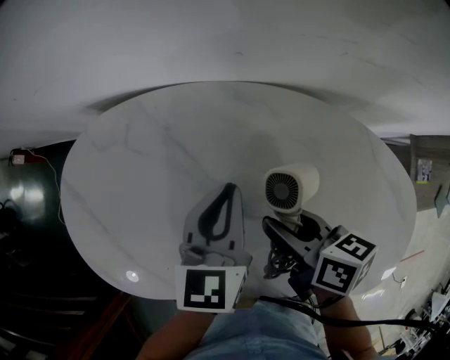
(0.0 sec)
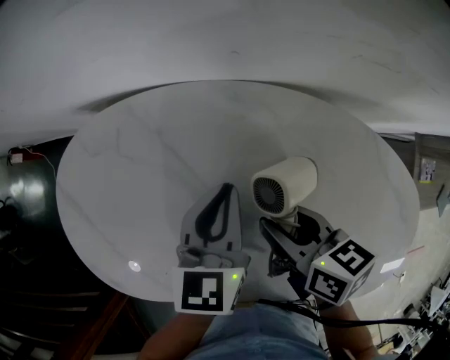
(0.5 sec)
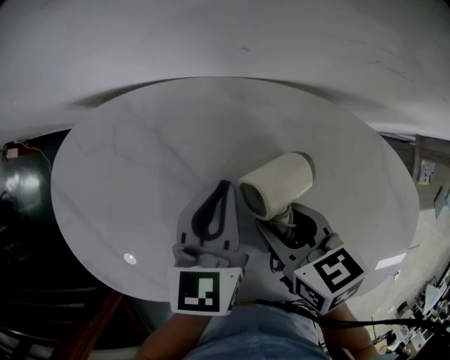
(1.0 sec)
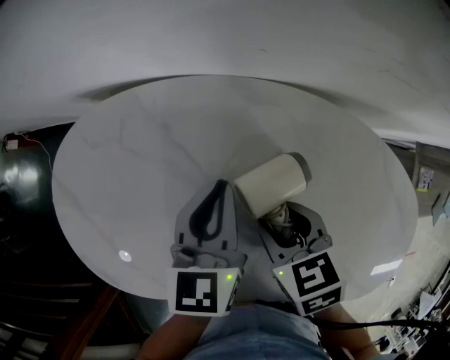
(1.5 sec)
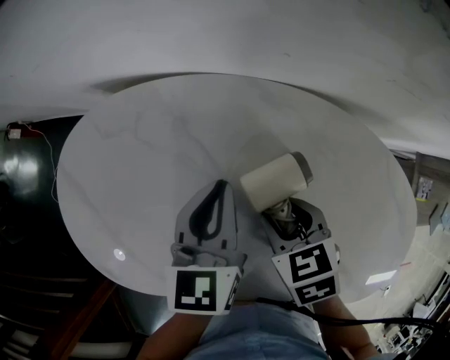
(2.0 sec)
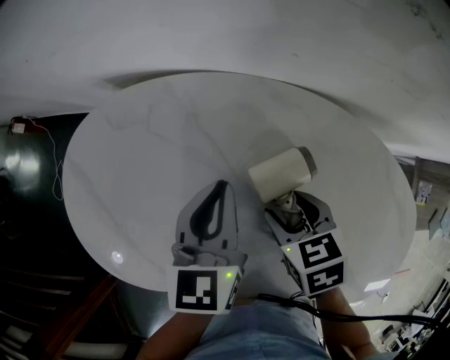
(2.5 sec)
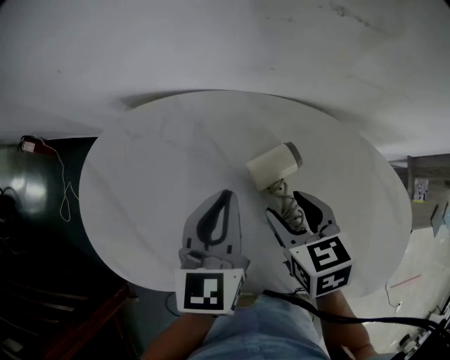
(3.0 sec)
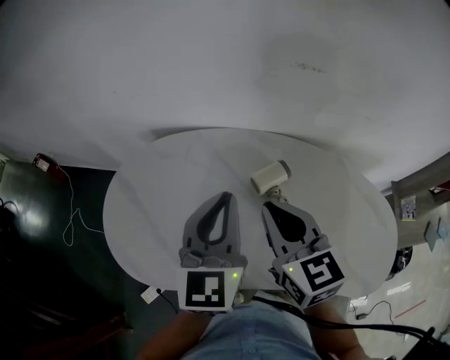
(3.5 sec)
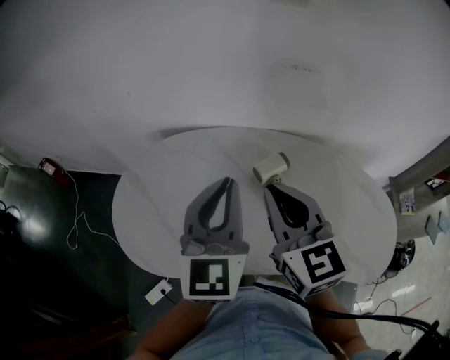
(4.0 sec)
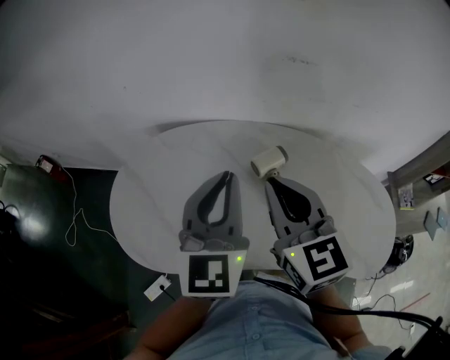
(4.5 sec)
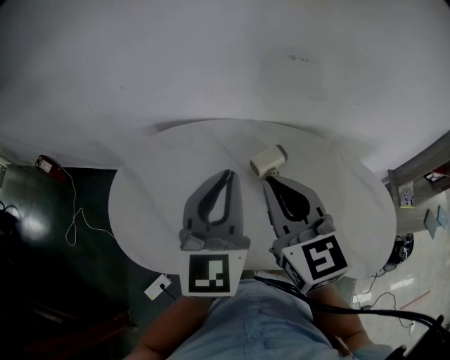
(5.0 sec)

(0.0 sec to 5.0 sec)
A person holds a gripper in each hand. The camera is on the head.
0.0 sec - 2.5 sec: The right gripper moves some 5 cm, and swivels some 40 degrees, while the left gripper travels to the left by roughly 5 cm.
2.5 sec - 5.0 sec: The right gripper travels upward by roughly 30 cm, points its fingers some 50 degrees further upward, and closes its fingers, while the left gripper heads upward and backward, covering roughly 25 cm, and swivels some 30 degrees.

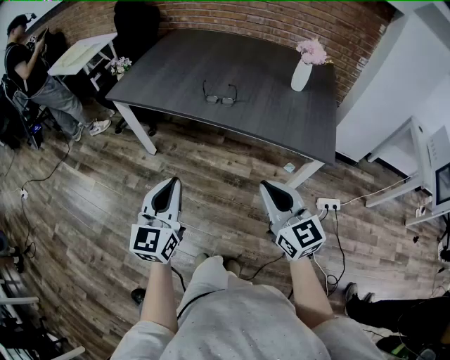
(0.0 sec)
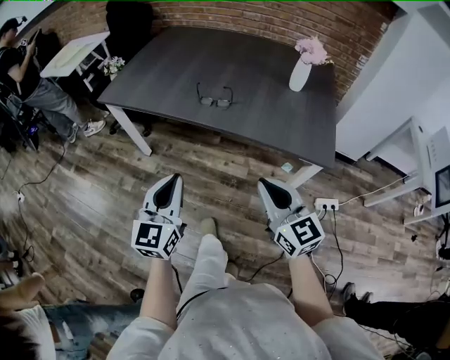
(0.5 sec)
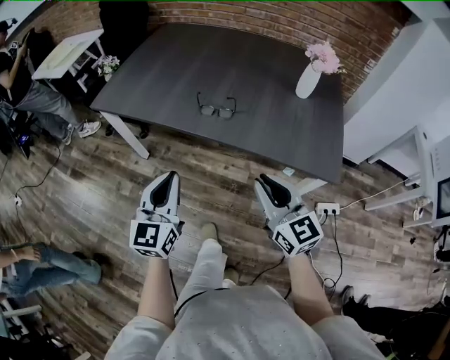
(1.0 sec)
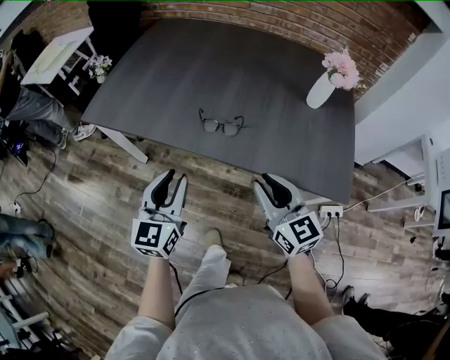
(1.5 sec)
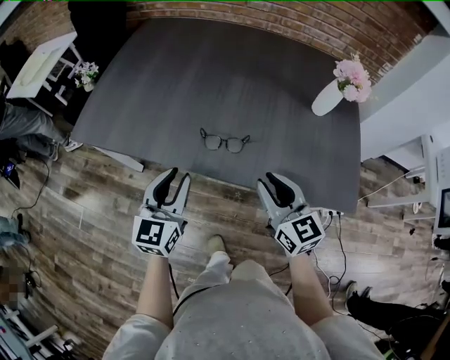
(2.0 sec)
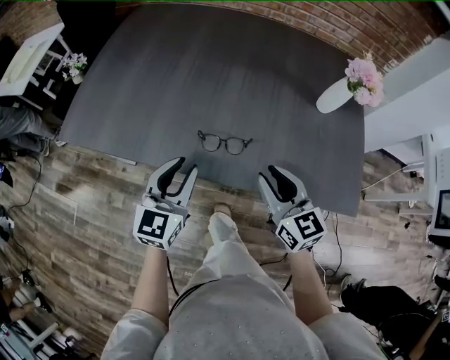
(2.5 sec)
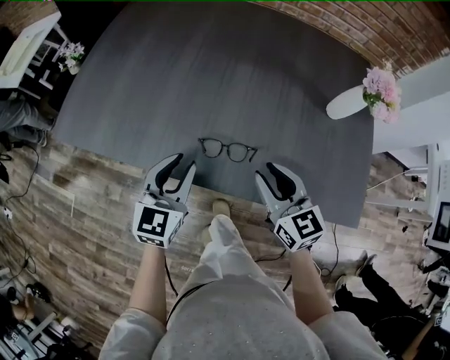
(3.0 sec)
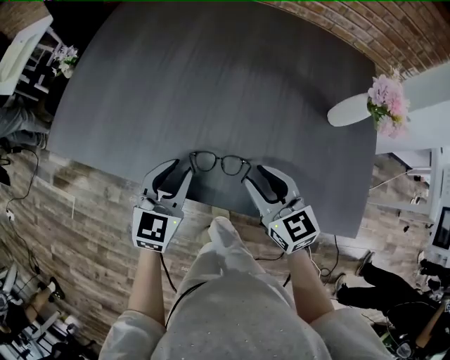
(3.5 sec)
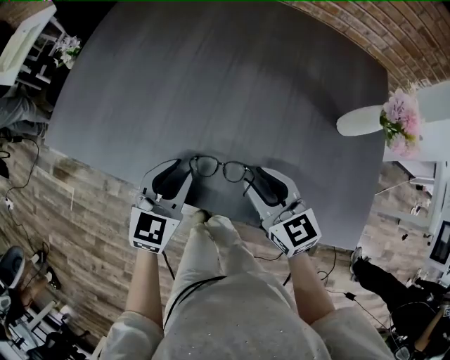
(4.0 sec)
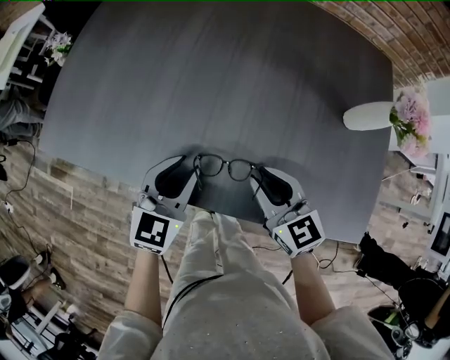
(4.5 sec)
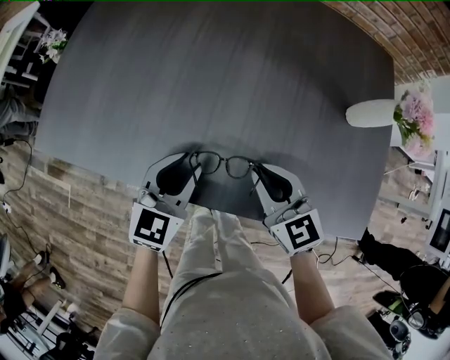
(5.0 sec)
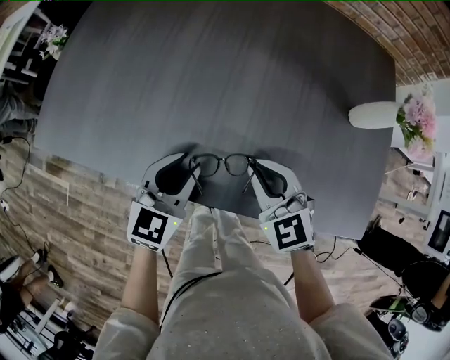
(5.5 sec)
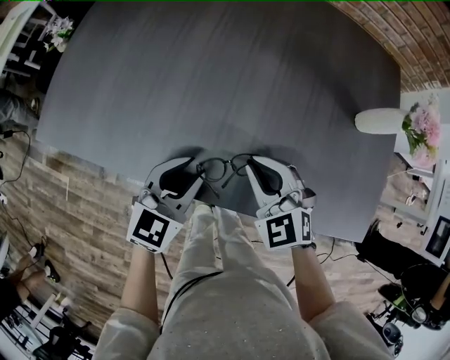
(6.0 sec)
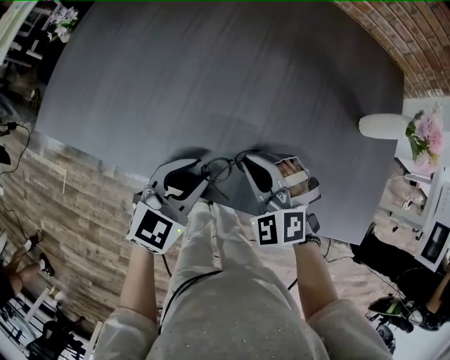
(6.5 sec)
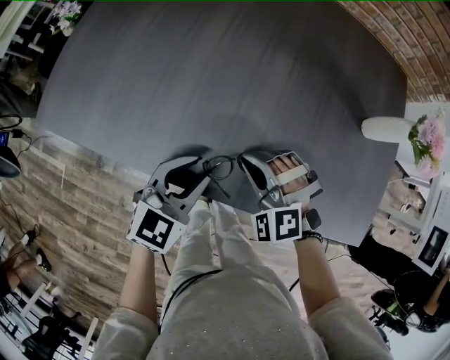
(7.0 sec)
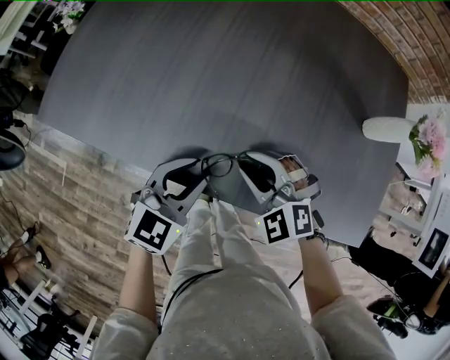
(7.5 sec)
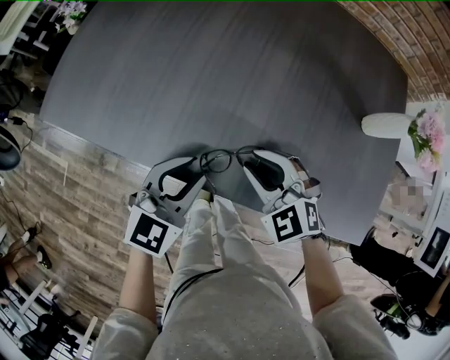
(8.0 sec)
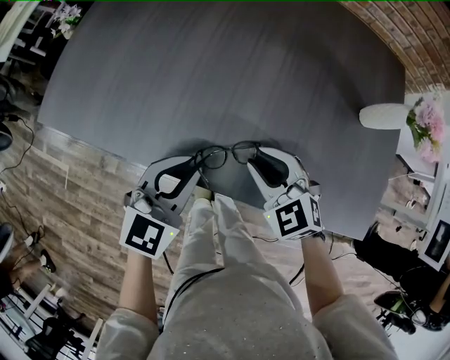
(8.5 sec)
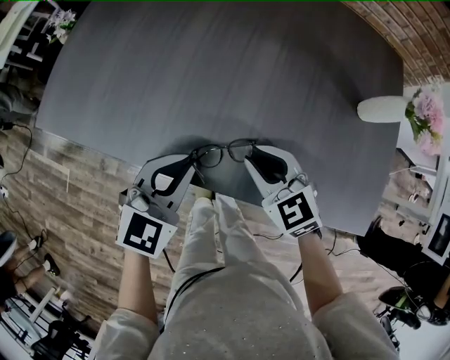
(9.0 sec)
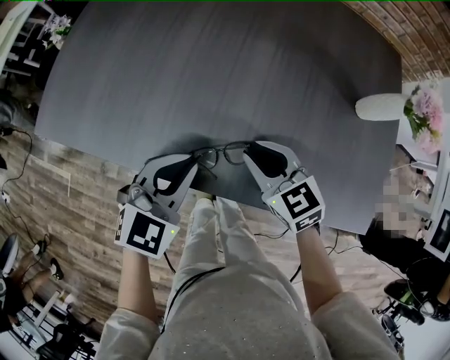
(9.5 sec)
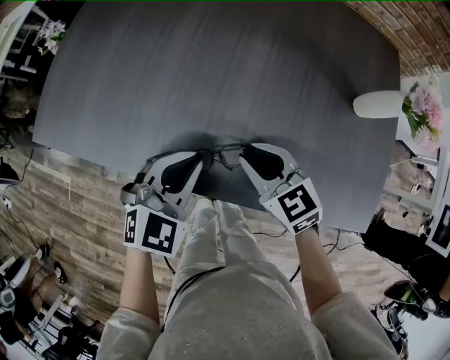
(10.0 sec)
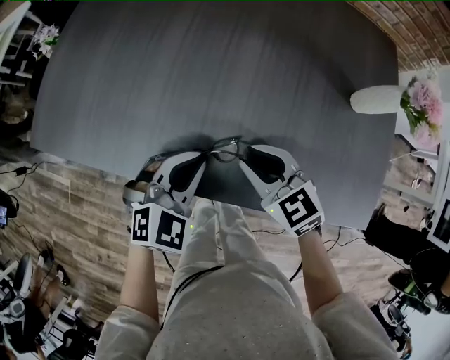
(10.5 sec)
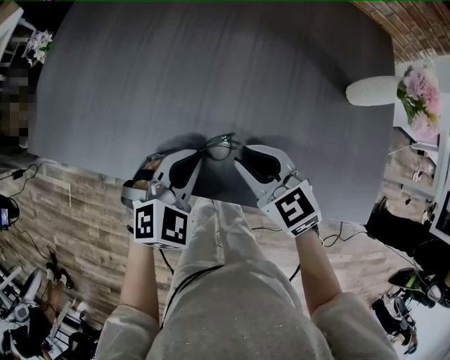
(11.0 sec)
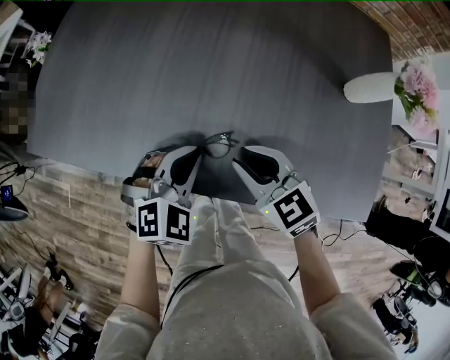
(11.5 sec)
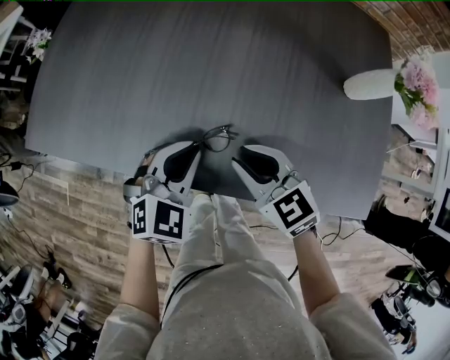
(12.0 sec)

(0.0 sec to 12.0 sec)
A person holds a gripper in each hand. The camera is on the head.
0.0 sec - 2.0 sec: Both grippers travel together forward, roughly 35 cm. The left gripper opens; the right gripper opens its fingers.
2.0 sec - 4.0 sec: Both grippers move forward and downward, about 15 cm.
4.0 sec - 6.0 sec: The right gripper is displaced to the left by about 5 cm, turns by some 40 degrees, and closes.
6.0 sec - 8.0 sec: The right gripper opens.
8.0 sec - 10.0 sec: The right gripper turns by some 30 degrees; the left gripper closes its fingers.
10.0 sec - 12.0 sec: The grippers make only small movements.

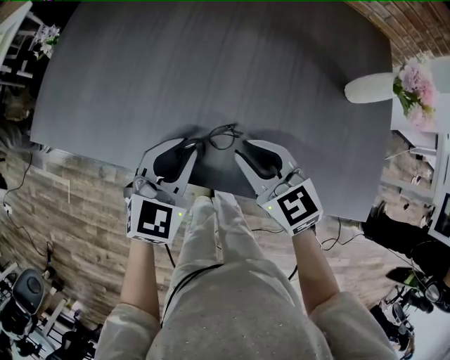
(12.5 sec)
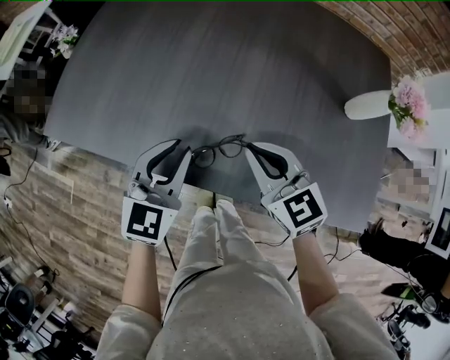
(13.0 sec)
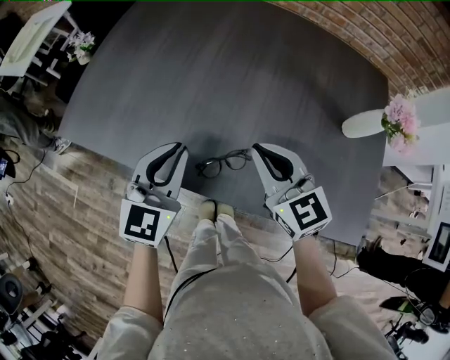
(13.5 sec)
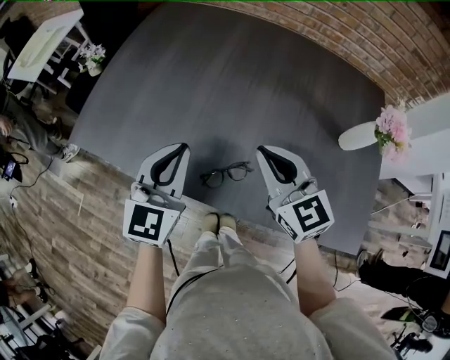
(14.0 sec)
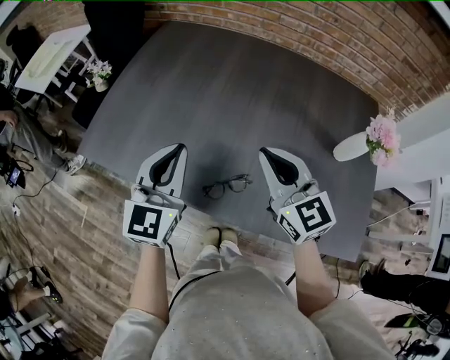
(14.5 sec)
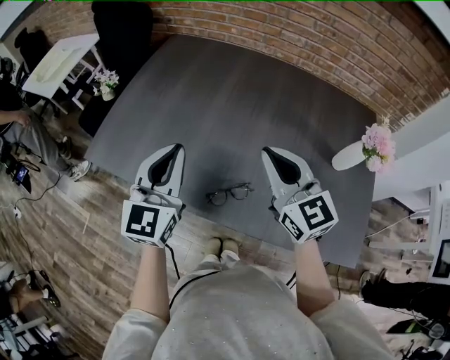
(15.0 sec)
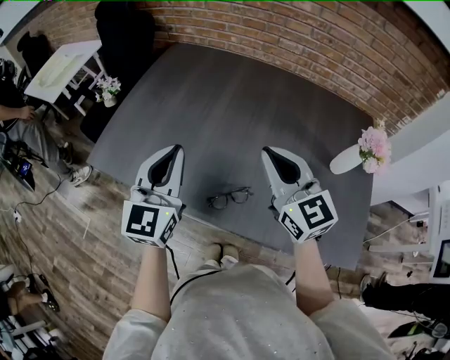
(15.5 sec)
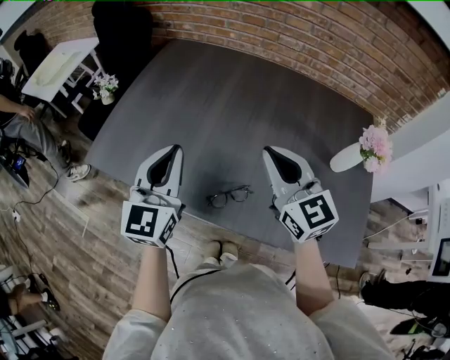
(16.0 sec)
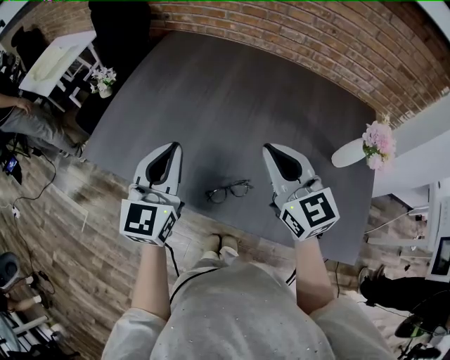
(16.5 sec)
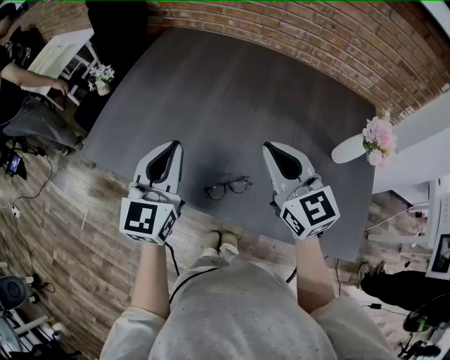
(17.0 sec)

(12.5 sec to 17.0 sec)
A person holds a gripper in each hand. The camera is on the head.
12.5 sec - 14.5 sec: Both grippers move upward, approximately 20 cm. The left gripper swivels approximately 30 degrees. Meanwhile the right gripper swivels about 20 degrees.
14.5 sec - 17.0 sec: The grippers stay close to where they were, moving slightly.

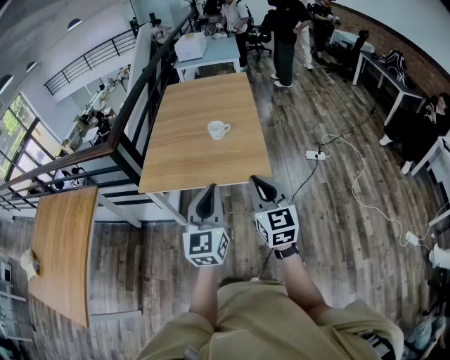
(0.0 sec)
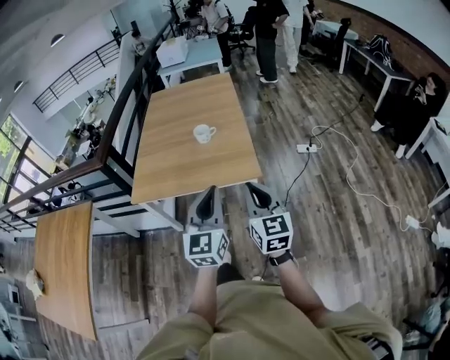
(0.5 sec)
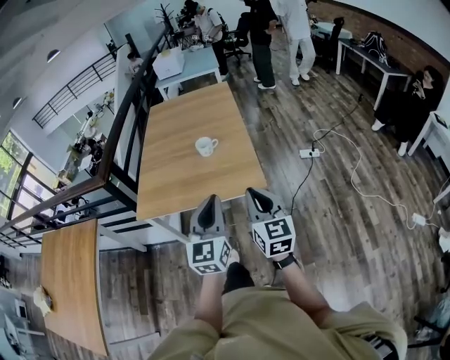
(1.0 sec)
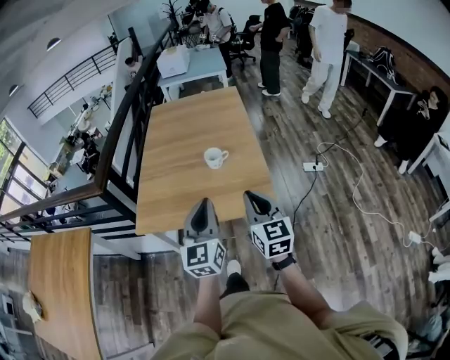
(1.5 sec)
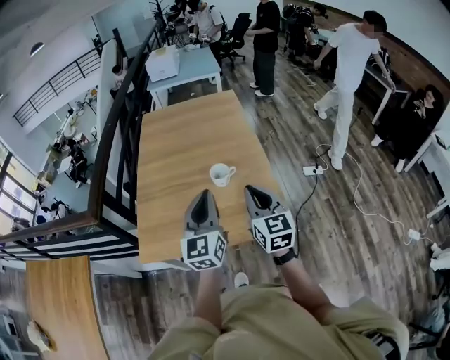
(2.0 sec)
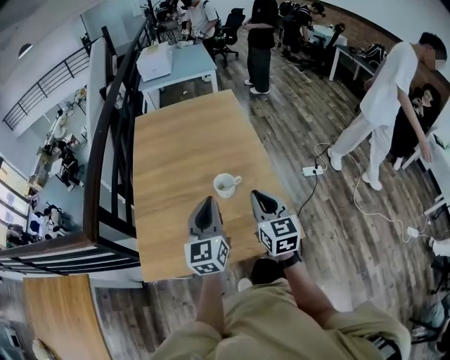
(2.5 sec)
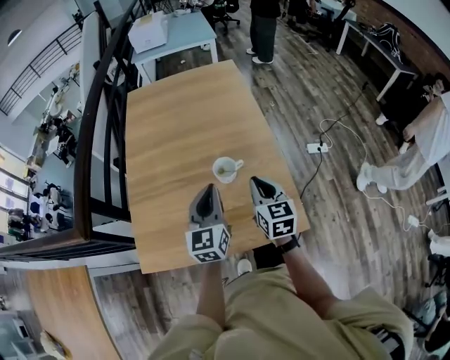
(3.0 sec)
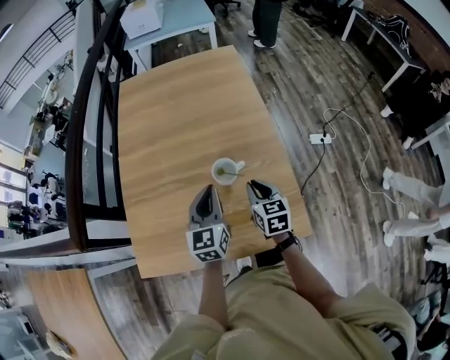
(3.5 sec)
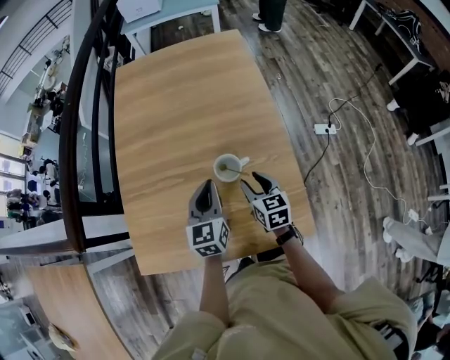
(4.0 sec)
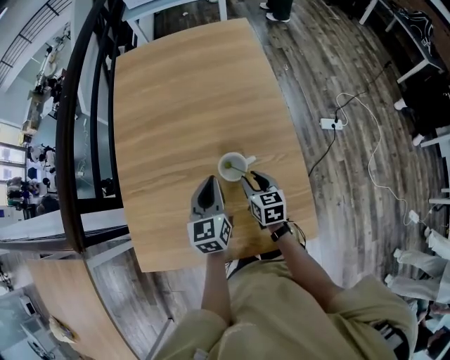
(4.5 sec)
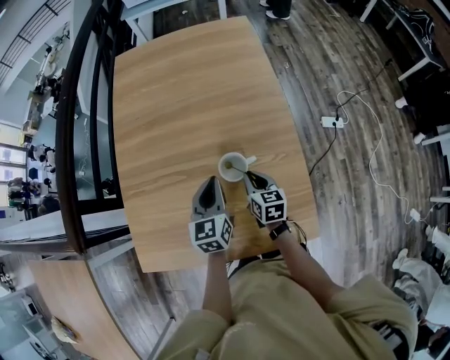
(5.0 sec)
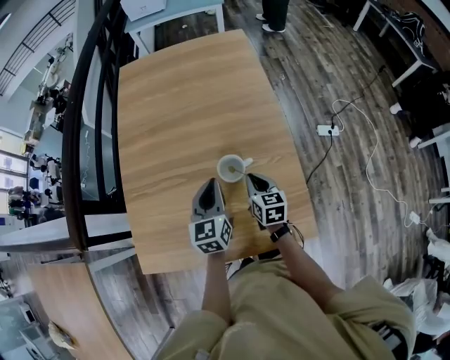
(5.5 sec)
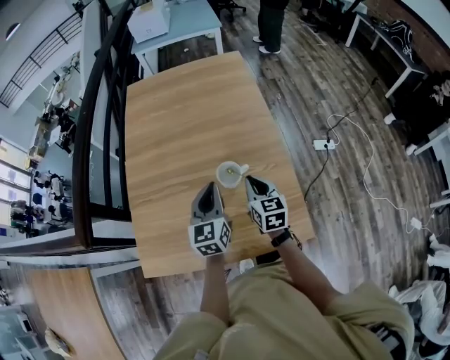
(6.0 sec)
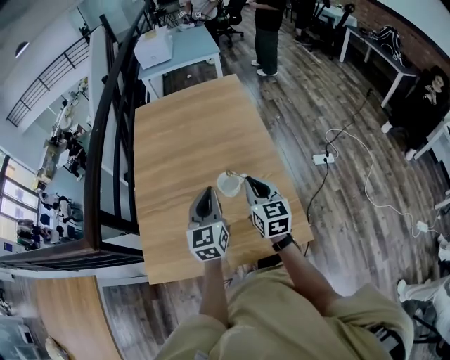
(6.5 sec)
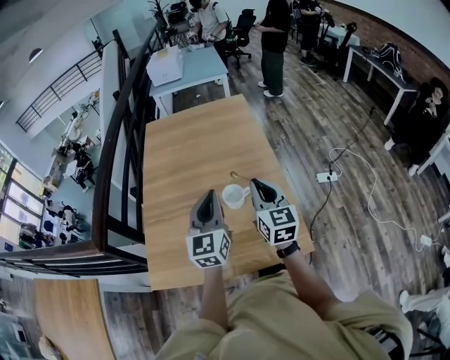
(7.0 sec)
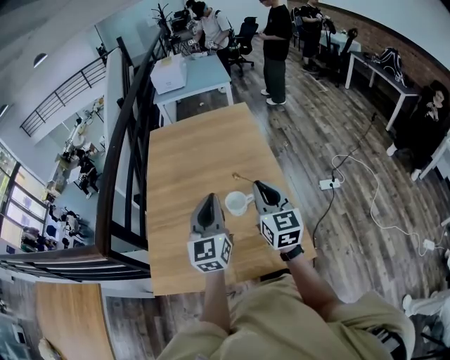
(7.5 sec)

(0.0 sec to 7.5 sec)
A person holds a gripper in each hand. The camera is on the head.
0.0 sec - 2.0 sec: The grippers both shift forward by approximately 35 cm.
2.0 sec - 4.0 sec: The two grippers go some 35 cm forward and downward. The right gripper rotates about 30 degrees, and opens its fingers. Meanwhile the left gripper changes its angle by about 20 degrees.
4.0 sec - 5.5 sec: The right gripper closes its fingers.
5.5 sec - 7.5 sec: The left gripper is displaced upward and backward by about 20 cm, and swivels about 30 degrees, while the right gripper travels upward by roughly 25 cm, and angles its fingers upward, by approximately 30 degrees.
